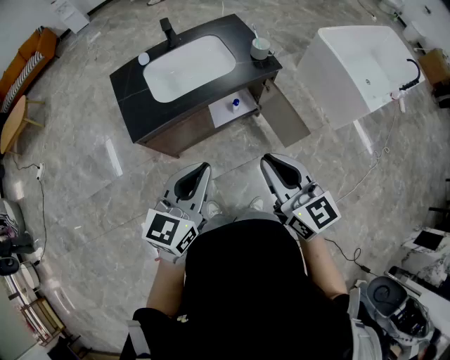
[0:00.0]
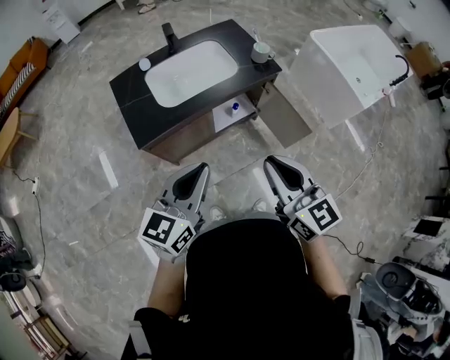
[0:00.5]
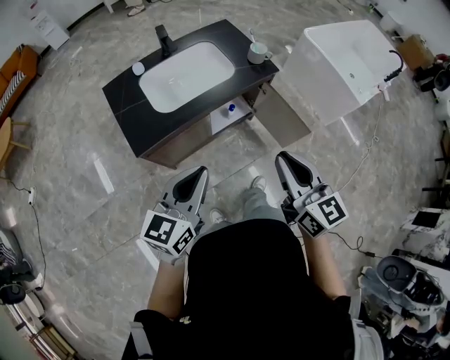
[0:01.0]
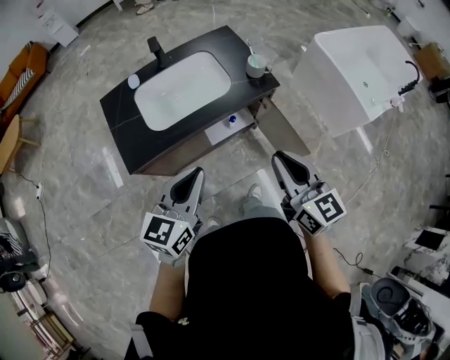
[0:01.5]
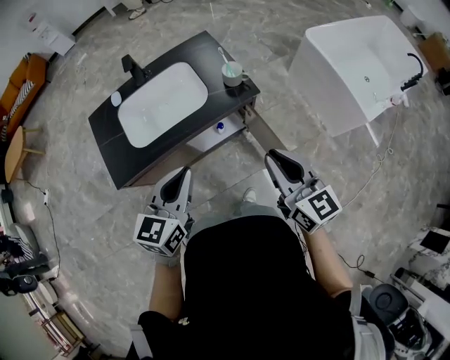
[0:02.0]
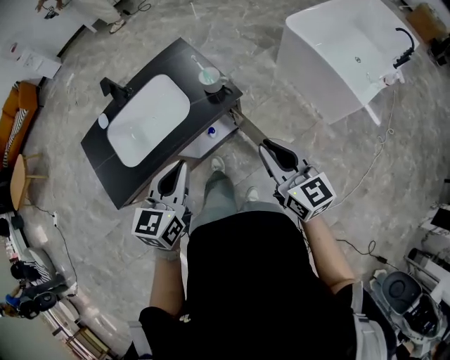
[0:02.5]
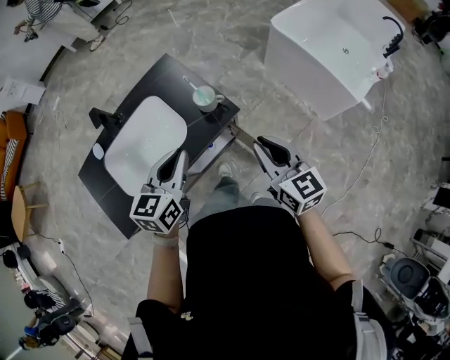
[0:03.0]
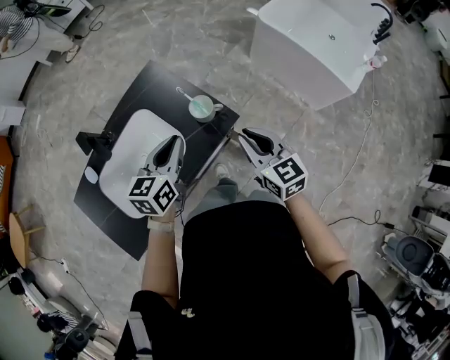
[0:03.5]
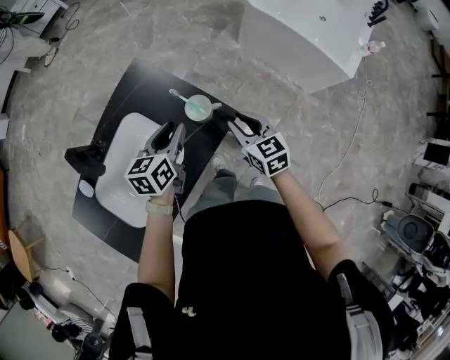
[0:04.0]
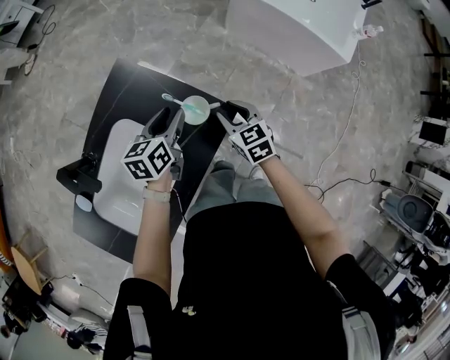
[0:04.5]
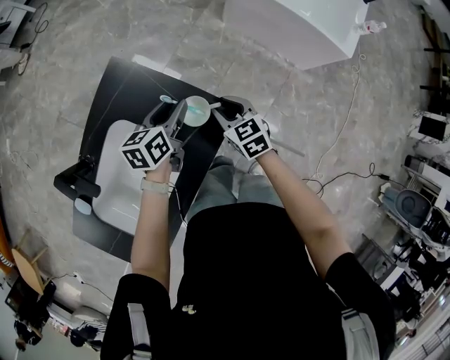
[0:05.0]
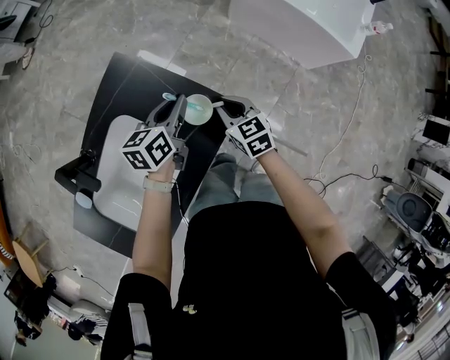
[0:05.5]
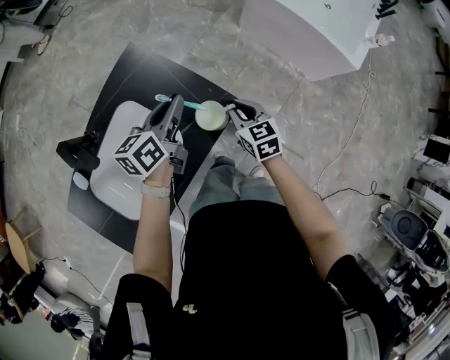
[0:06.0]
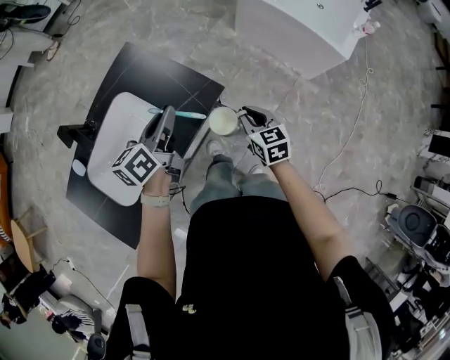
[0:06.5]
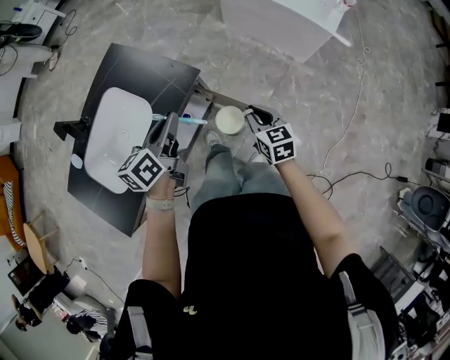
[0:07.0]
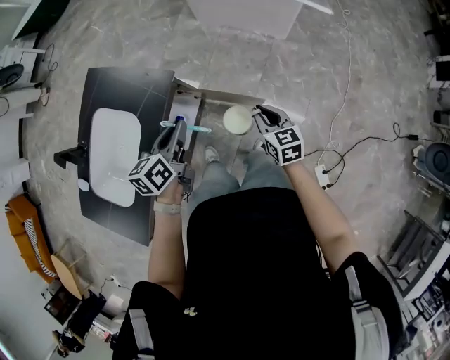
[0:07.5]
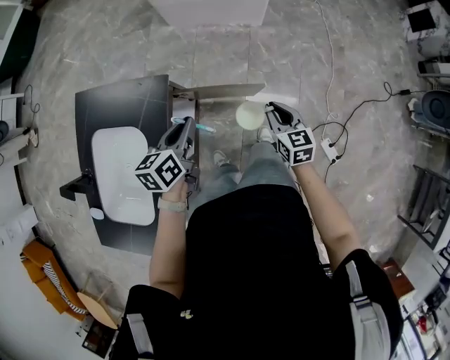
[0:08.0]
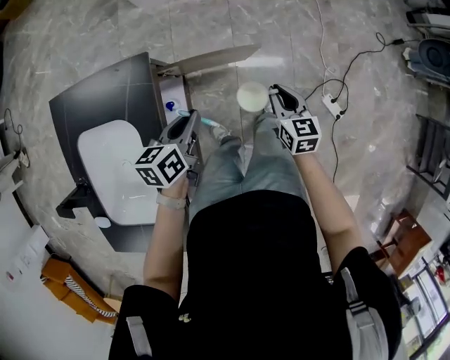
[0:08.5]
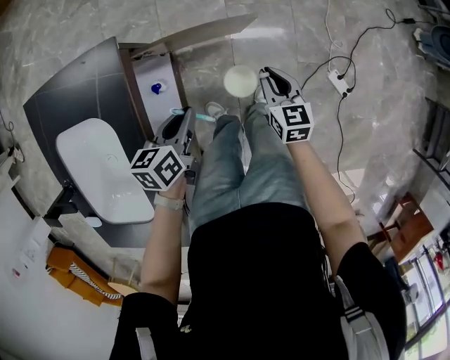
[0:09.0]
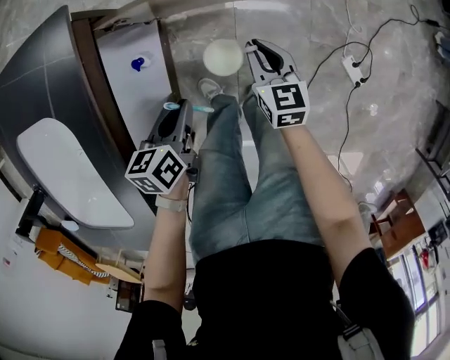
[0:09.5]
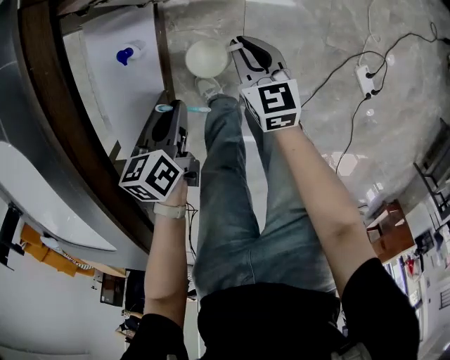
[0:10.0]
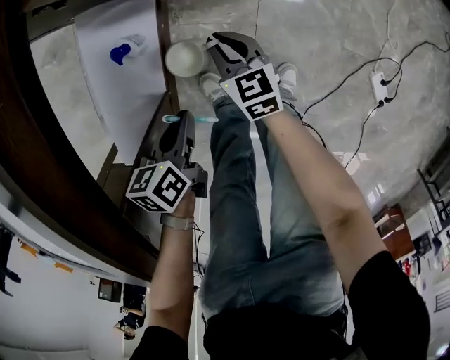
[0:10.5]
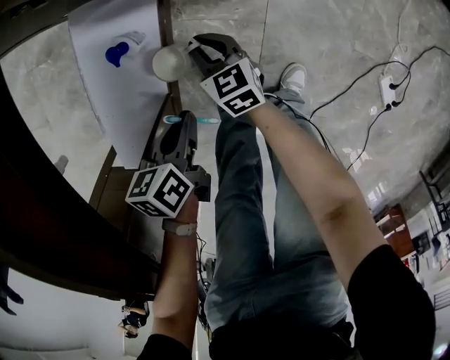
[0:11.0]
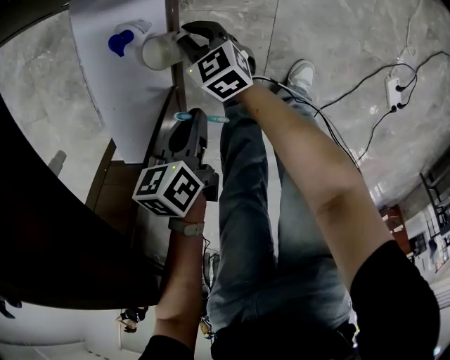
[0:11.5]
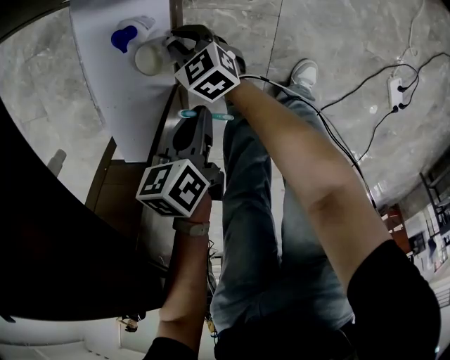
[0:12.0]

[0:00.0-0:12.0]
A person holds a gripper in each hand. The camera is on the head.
0:00.0 to 0:02.0: The left gripper heads forward, covering some 20 cm, while the right gripper shifts roughly 25 cm forward and to the right.
0:02.0 to 0:04.0: The two grippers go approximately 40 cm forward and downward. The left gripper rotates approximately 30 degrees, and opens its fingers, while the right gripper changes its angle by approximately 30 degrees.
0:04.0 to 0:06.0: The right gripper is displaced downward by some 5 cm; the left gripper reaches some 5 cm downward, then returns.
0:06.0 to 0:08.0: The right gripper shifts by roughly 40 cm, and turns by approximately 40 degrees, while the left gripper ends up about 30 cm from where it was, and turns by approximately 30 degrees.
0:08.0 to 0:10.0: Both grippers travel together downward, approximately 35 cm. The left gripper changes its angle by about 20 degrees.
0:10.0 to 0:12.0: The left gripper is displaced downward by roughly 15 cm. The right gripper goes some 35 cm to the left and downward, and swivels some 30 degrees.

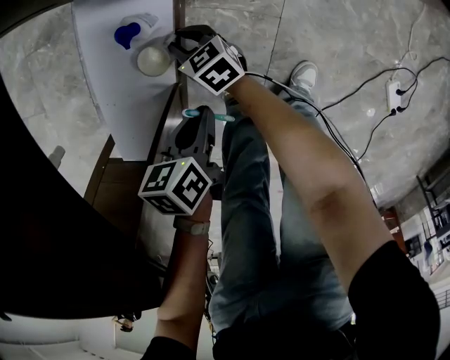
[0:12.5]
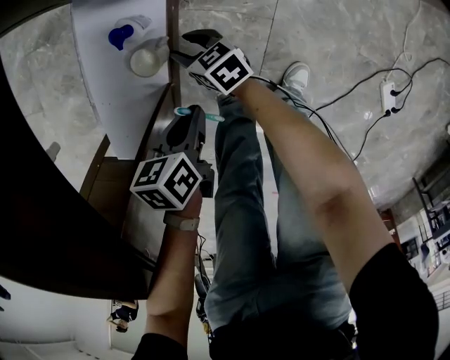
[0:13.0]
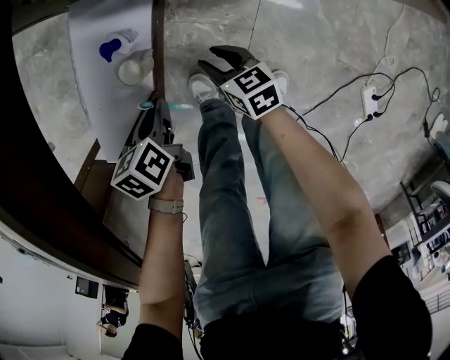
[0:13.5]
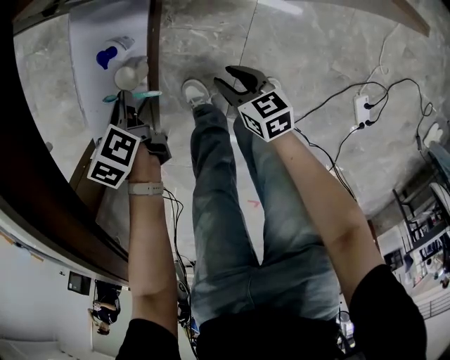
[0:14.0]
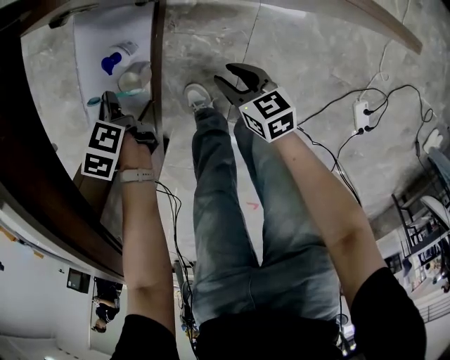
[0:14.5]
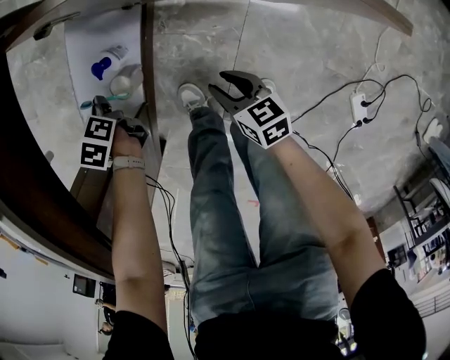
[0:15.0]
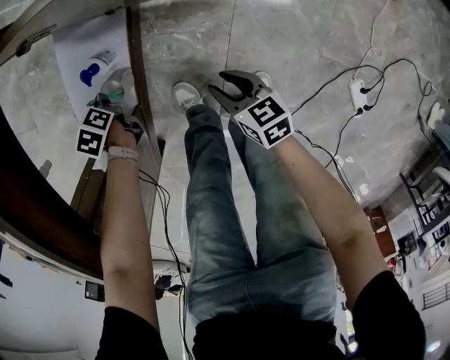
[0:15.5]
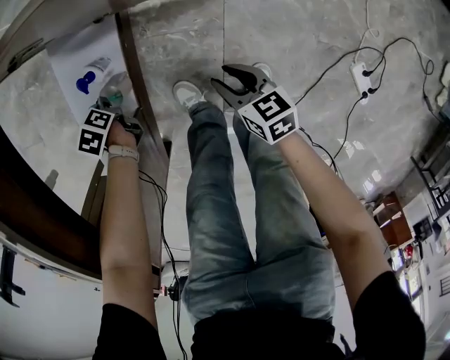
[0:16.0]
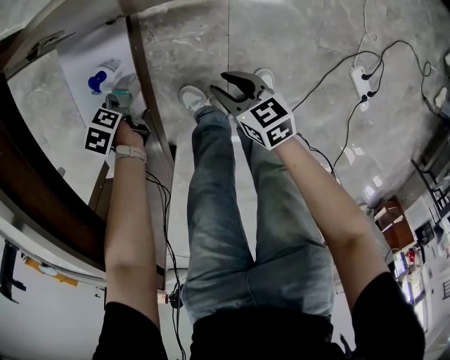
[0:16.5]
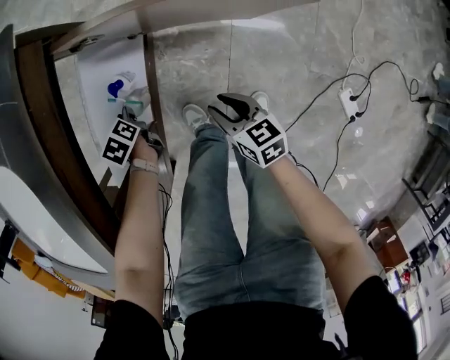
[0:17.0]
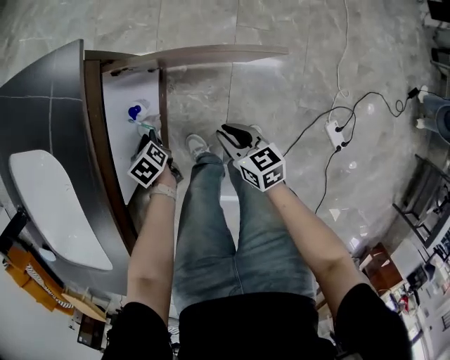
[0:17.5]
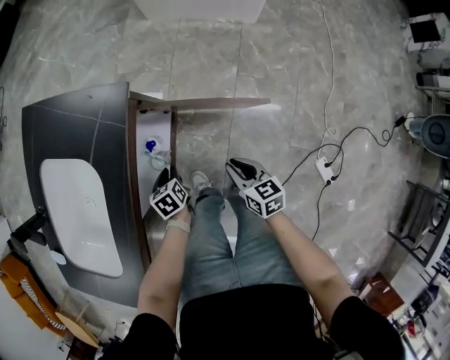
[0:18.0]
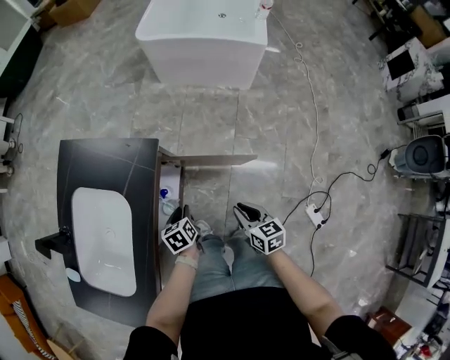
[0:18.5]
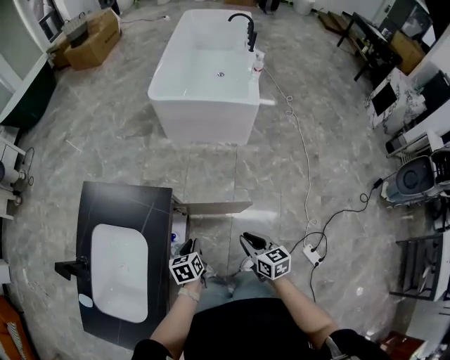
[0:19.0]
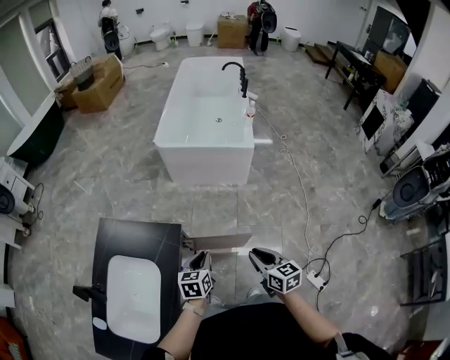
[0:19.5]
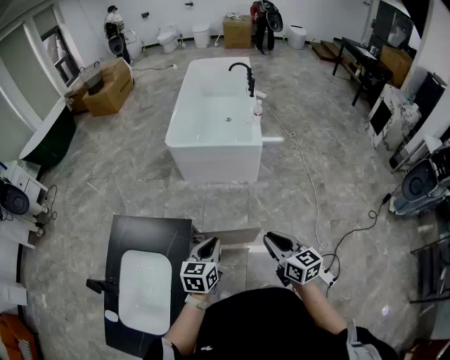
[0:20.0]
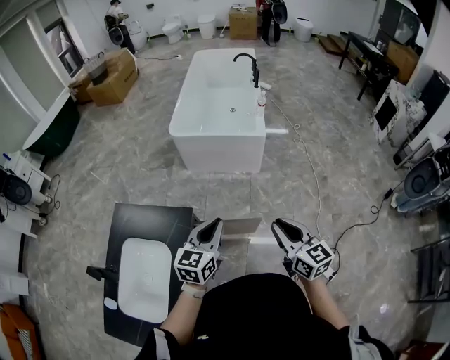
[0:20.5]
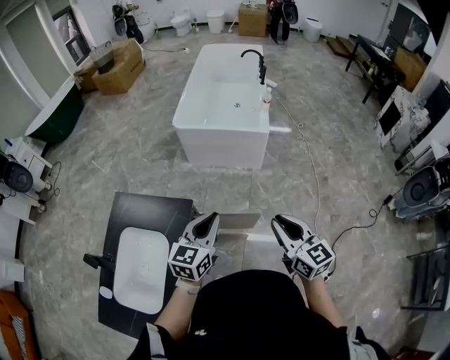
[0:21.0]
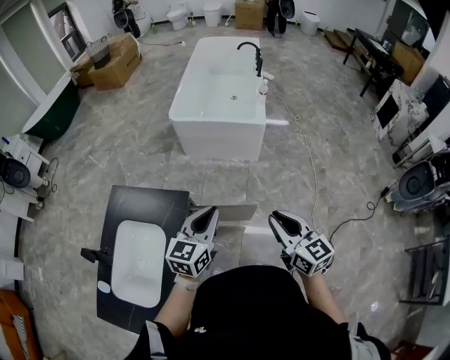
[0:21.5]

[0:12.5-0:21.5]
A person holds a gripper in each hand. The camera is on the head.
0:12.5 to 0:14.5: The left gripper changes place by about 15 cm, and swivels about 40 degrees, while the right gripper shifts by roughly 25 cm.
0:14.5 to 0:17.0: The right gripper is displaced upward by roughly 10 cm. The left gripper goes downward and returns, roughly 10 cm each way.
0:17.0 to 0:19.5: Both grippers move upward, approximately 50 cm. The right gripper rotates roughly 20 degrees. The left gripper tilts its fingers roughly 30 degrees upward.
0:19.5 to 0:21.5: Both grippers travel together upward, roughly 20 cm. The left gripper turns by some 30 degrees.

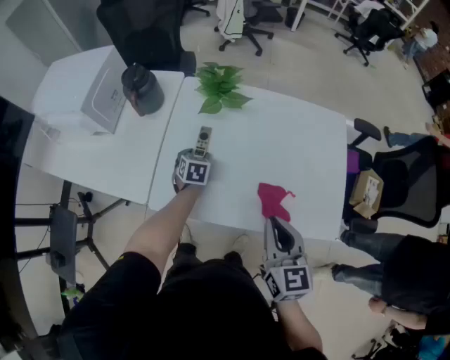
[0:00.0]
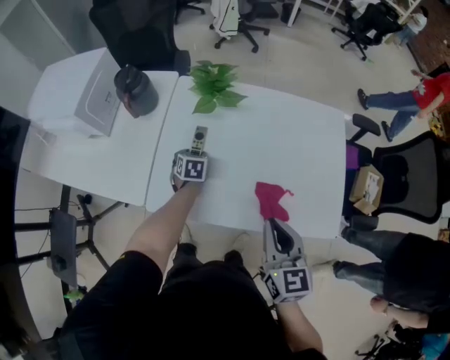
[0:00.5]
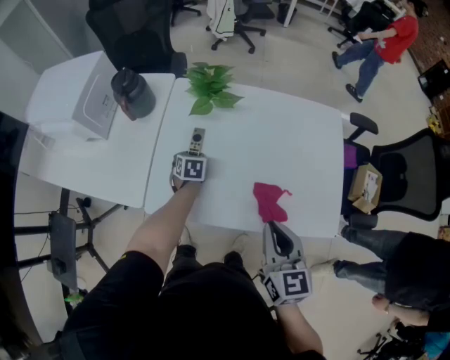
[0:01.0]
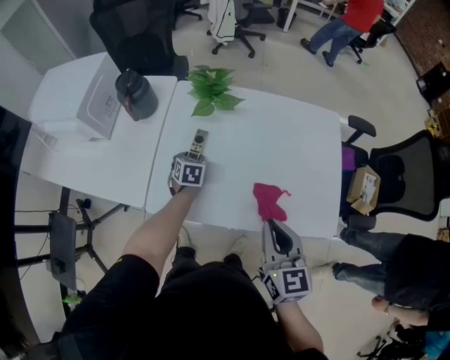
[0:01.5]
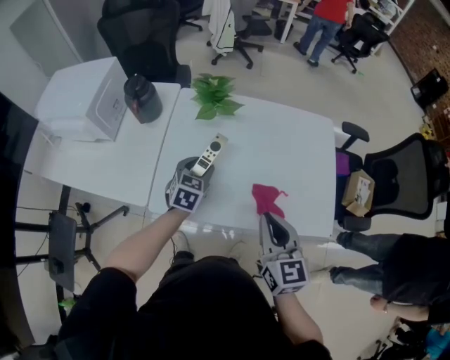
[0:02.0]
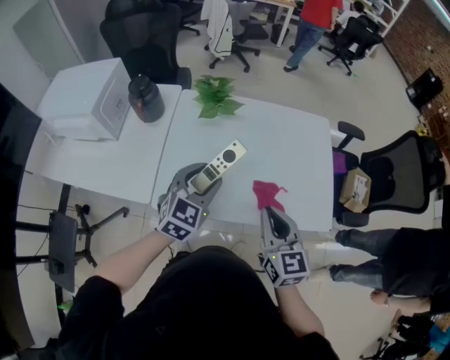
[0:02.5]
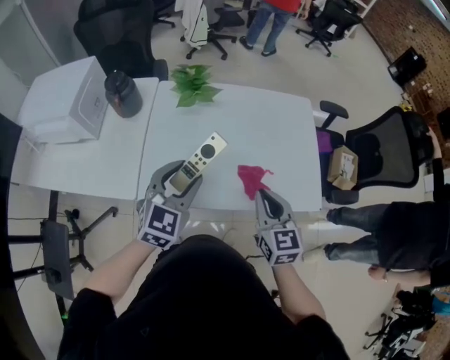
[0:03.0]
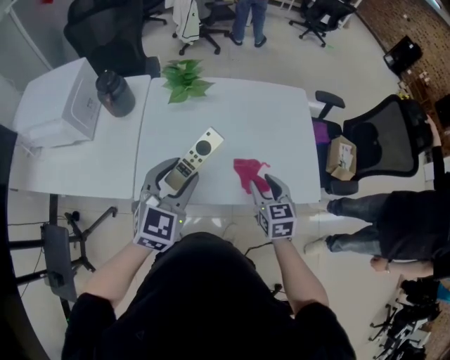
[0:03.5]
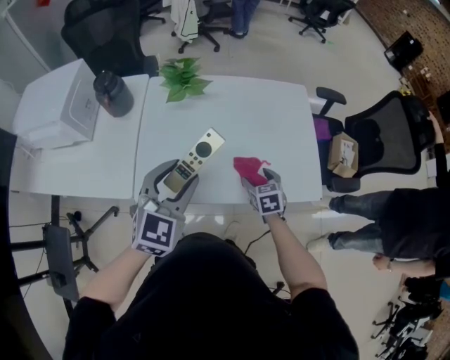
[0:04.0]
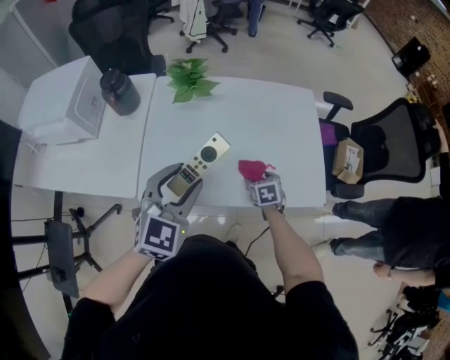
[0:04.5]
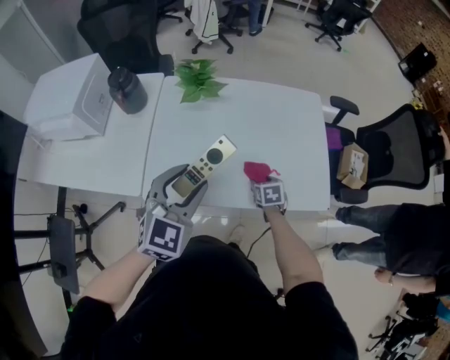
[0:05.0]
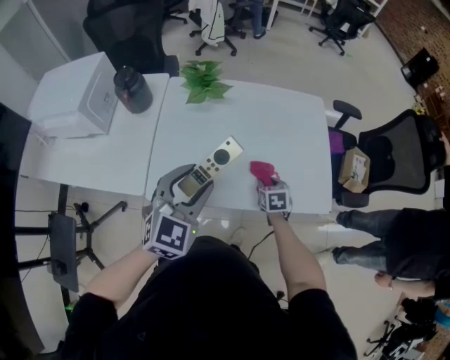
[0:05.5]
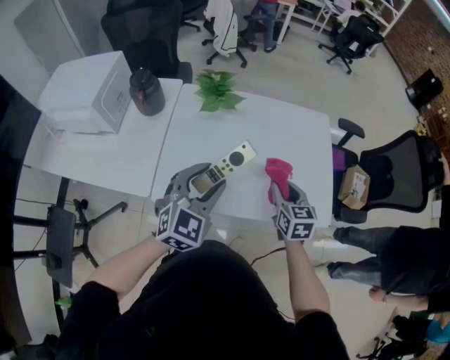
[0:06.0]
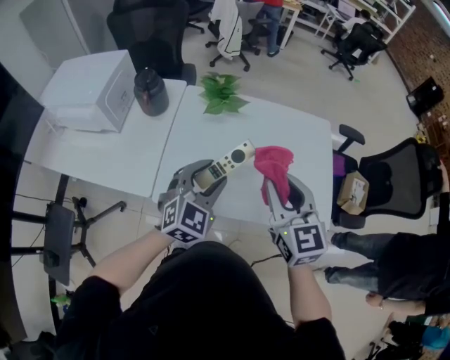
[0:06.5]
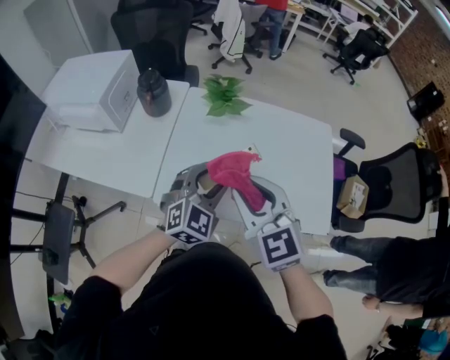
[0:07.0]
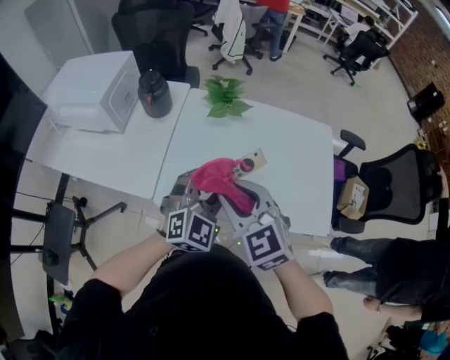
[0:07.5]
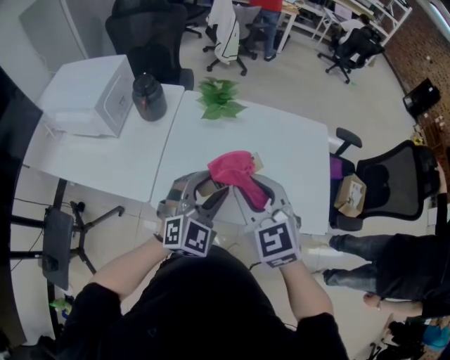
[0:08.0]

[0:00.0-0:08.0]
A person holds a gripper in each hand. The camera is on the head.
0:00.0 to 0:02.0: The left gripper shifts about 15 cm upward and backward, and swivels approximately 20 degrees.
0:02.0 to 0:04.0: The right gripper goes approximately 20 cm downward, rotates some 30 degrees, and opens its fingers. Meanwhile the left gripper is displaced upward and backward by about 20 cm, and rotates roughly 30 degrees.
0:04.0 to 0:06.0: The right gripper heads upward, covering approximately 15 cm, and closes up.
0:06.0 to 0:08.0: The right gripper heads to the left and upward, covering approximately 25 cm, and turns by roughly 40 degrees.
